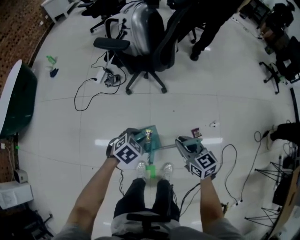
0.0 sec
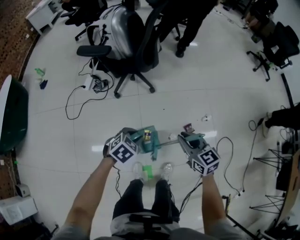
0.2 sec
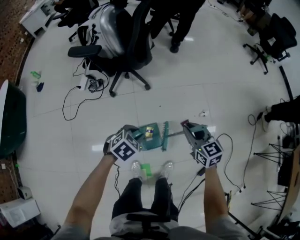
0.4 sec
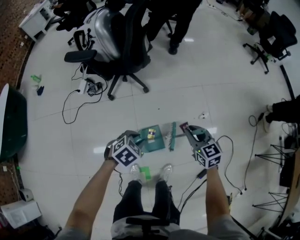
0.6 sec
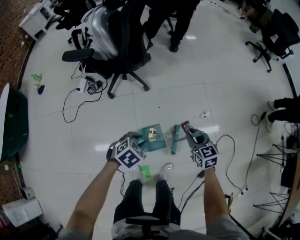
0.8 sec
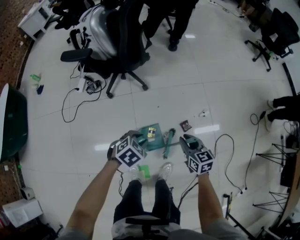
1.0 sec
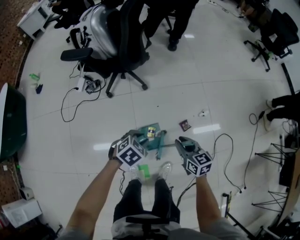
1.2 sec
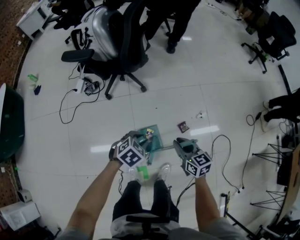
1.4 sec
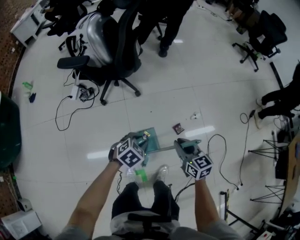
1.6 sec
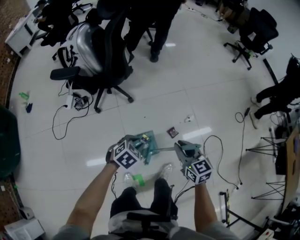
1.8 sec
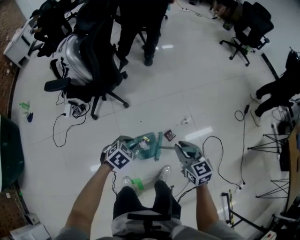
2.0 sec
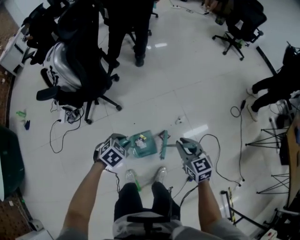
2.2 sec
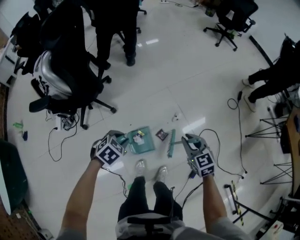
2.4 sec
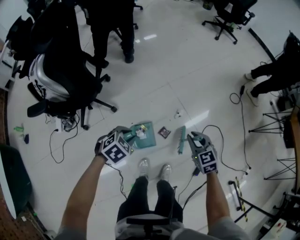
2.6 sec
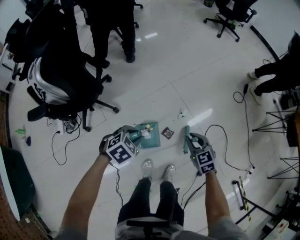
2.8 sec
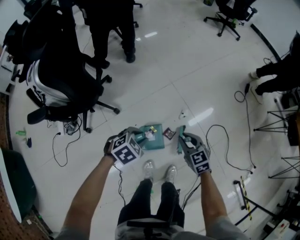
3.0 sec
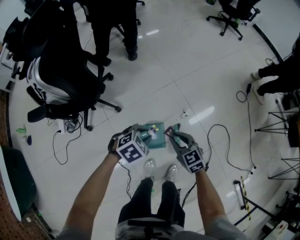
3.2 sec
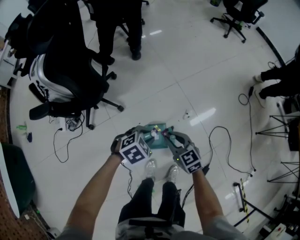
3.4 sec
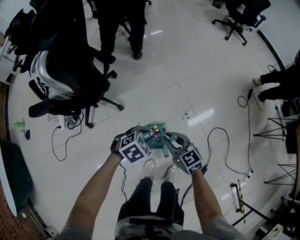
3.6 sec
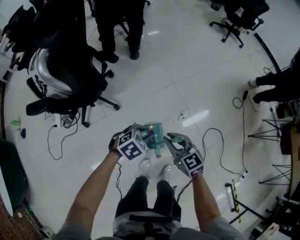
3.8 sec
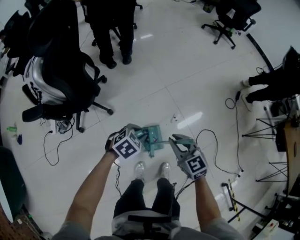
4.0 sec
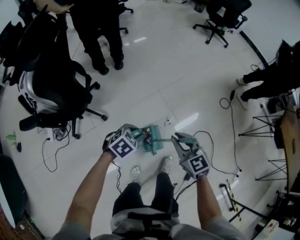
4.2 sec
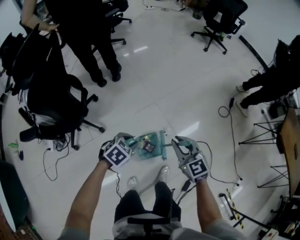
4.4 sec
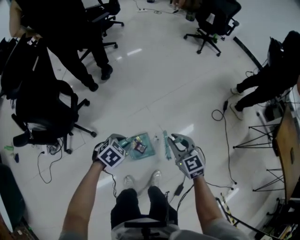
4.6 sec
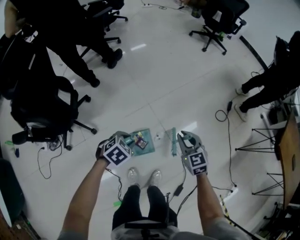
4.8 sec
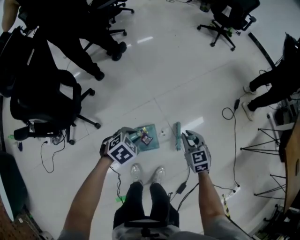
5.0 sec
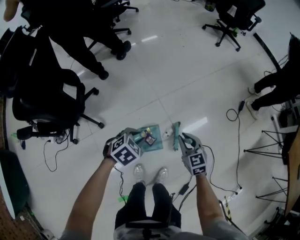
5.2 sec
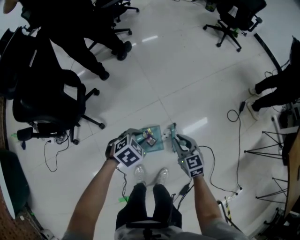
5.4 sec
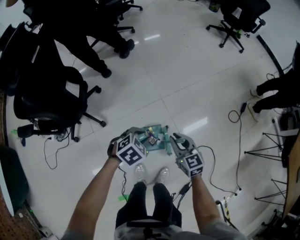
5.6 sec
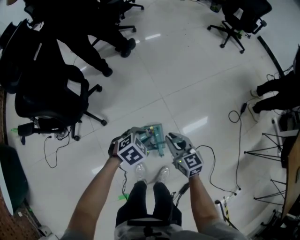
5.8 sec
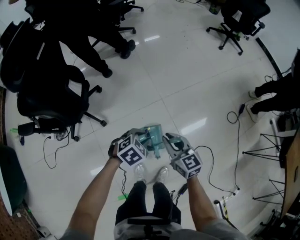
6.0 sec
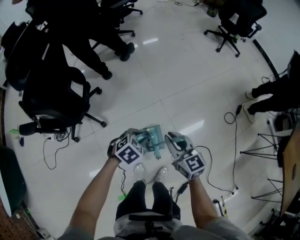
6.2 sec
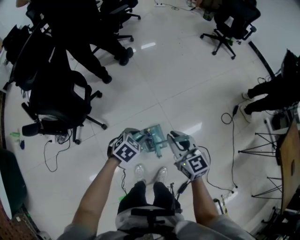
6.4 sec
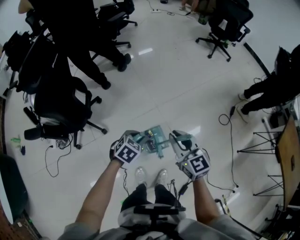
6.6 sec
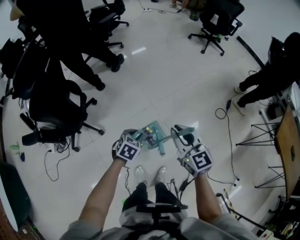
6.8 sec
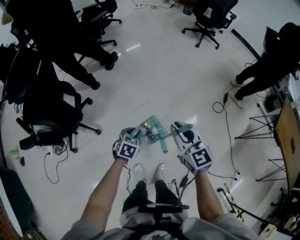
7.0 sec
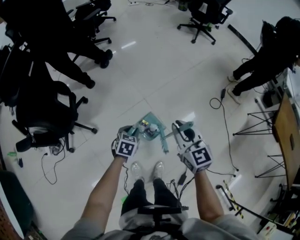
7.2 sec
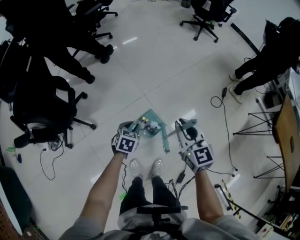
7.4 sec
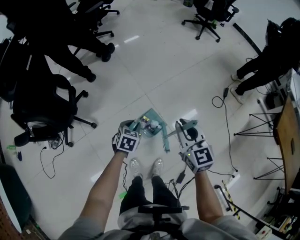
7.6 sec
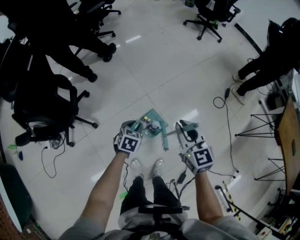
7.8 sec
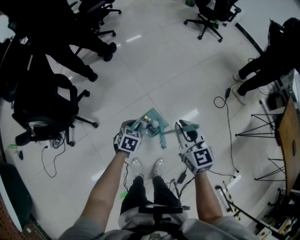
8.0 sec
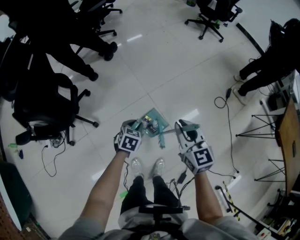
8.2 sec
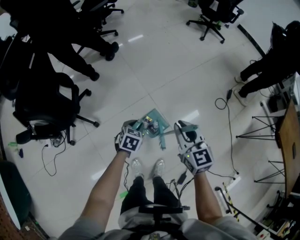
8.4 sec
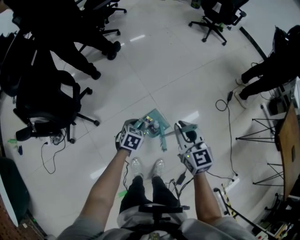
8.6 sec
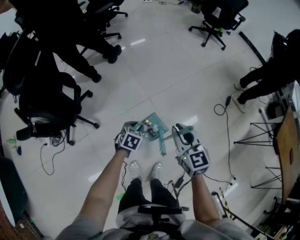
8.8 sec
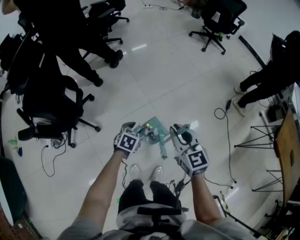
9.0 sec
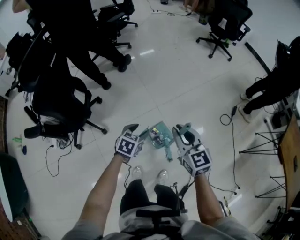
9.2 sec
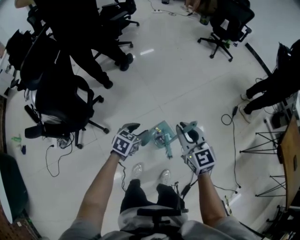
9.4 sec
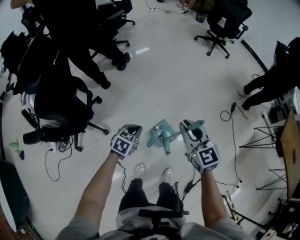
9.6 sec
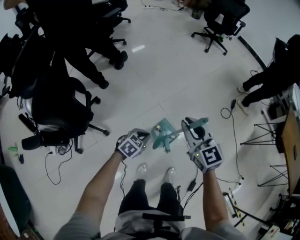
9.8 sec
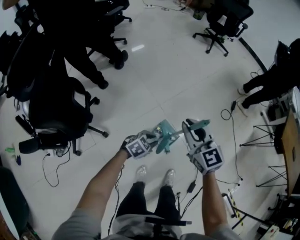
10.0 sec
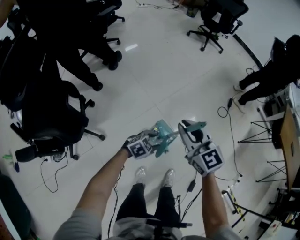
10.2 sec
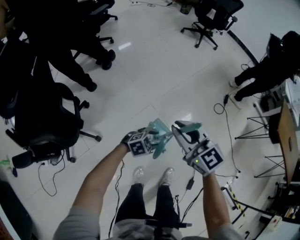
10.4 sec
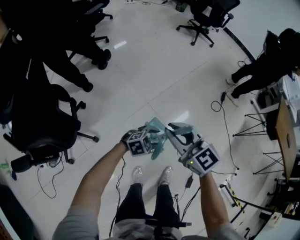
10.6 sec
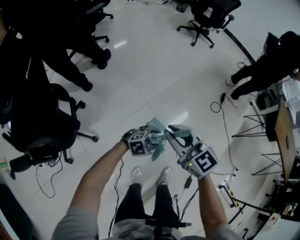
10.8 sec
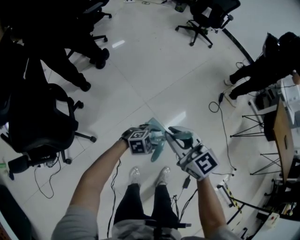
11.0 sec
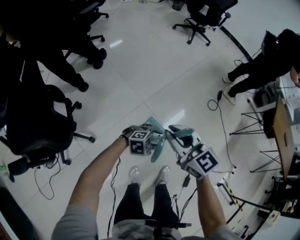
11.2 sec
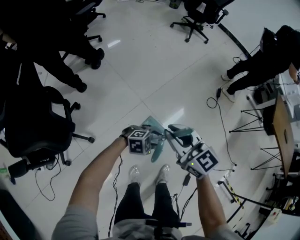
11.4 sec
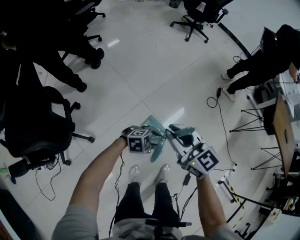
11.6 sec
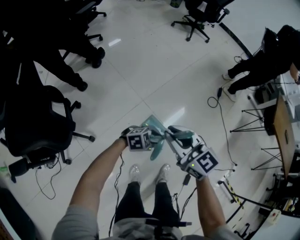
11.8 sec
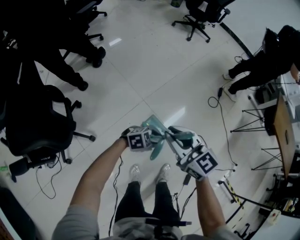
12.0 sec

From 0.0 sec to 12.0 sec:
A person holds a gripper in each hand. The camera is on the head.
From 0.0 sec to 1.6 sec: Both grippers travel together to the right, approximately 15 cm. The right gripper turns by some 20 degrees.
From 1.6 sec to 3.0 sec: The left gripper travels forward and to the right by some 25 cm, and changes its angle by some 30 degrees. Meanwhile the right gripper is displaced forward, to the right and downward by approximately 25 cm.
From 3.0 sec to 4.4 sec: The right gripper travels upward and forward by some 15 cm, and moves roughly 10 cm to the left and comes back, while the left gripper shifts about 10 cm forward and to the right.
From 4.4 sec to 6.0 sec: The left gripper heads forward, covering approximately 10 cm; the right gripper travels forward and downward by some 10 cm, and goes to the right and returns, approximately 10 cm each way.
From 6.0 sec to 7.6 sec: The right gripper moves to the right and upward, approximately 15 cm, and changes its angle by roughly 20 degrees. Meanwhile the left gripper travels upward and back again, some 5 cm each way, and rotates some 20 degrees.
From 7.6 sec to 9.0 sec: The left gripper opens up.
From 9.0 sec to 10.4 sec: The right gripper is displaced to the left by roughly 15 cm; the left gripper shifts approximately 5 cm downward, swivels roughly 60 degrees, and closes, then opens again.
From 10.4 sec to 12.0 sec: The left gripper ends up some 5 cm from where it was.

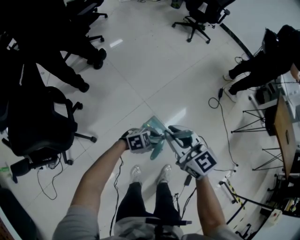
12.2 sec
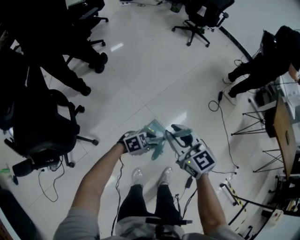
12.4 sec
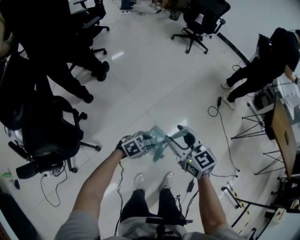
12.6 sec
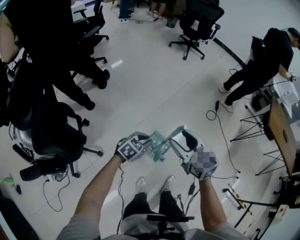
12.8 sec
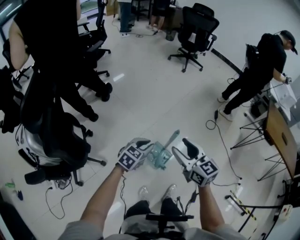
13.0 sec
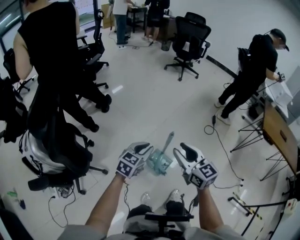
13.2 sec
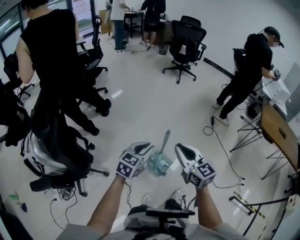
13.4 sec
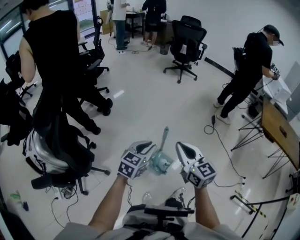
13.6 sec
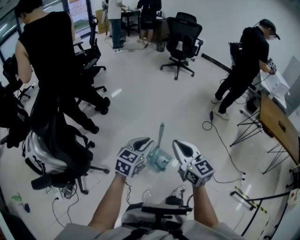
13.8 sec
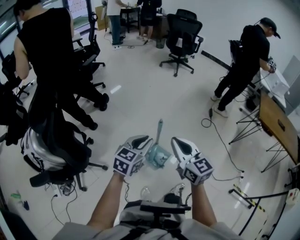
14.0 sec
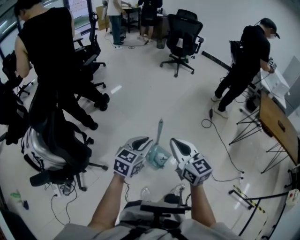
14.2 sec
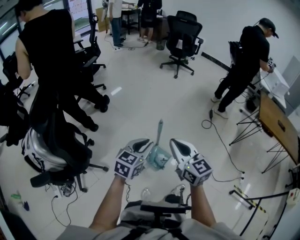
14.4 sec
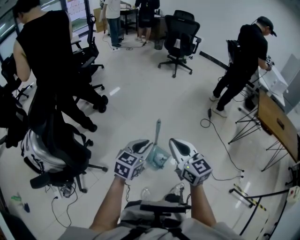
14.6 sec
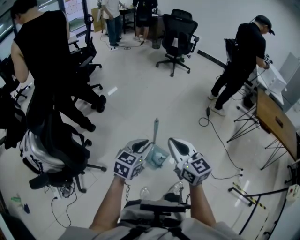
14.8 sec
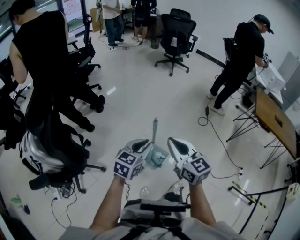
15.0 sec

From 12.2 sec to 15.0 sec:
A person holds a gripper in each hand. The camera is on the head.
From 12.2 sec to 13.6 sec: The left gripper is displaced upward by approximately 25 cm, swivels about 40 degrees, and closes its fingers; the right gripper is displaced upward by about 10 cm, and opens, then closes again.
From 13.6 sec to 15.0 sec: The grippers move only a little.

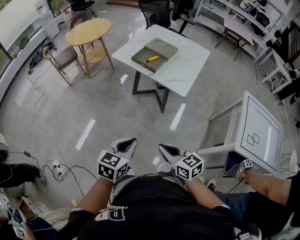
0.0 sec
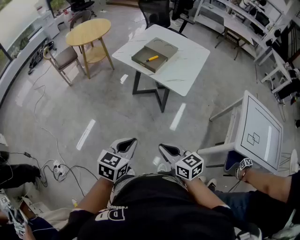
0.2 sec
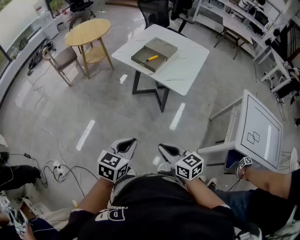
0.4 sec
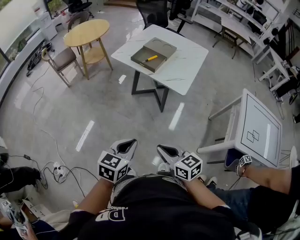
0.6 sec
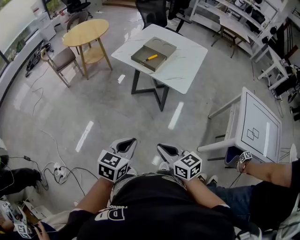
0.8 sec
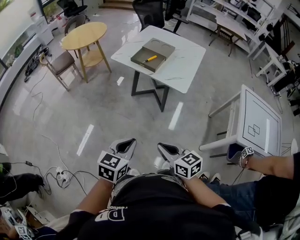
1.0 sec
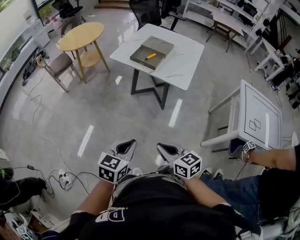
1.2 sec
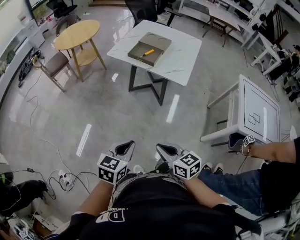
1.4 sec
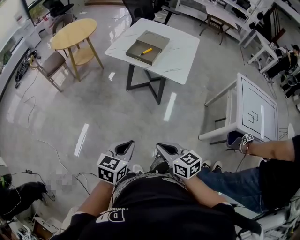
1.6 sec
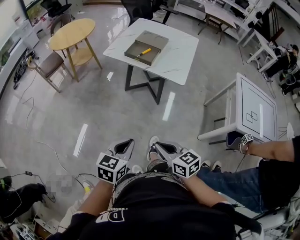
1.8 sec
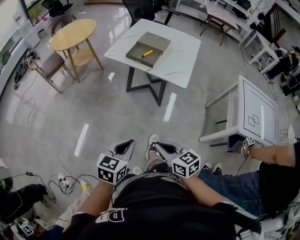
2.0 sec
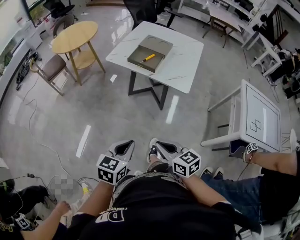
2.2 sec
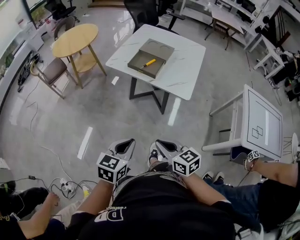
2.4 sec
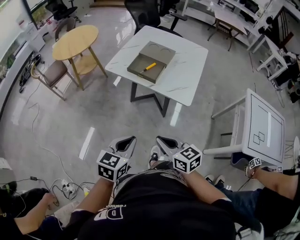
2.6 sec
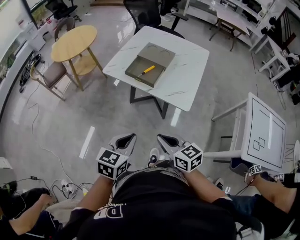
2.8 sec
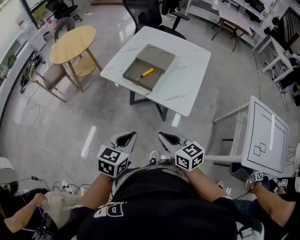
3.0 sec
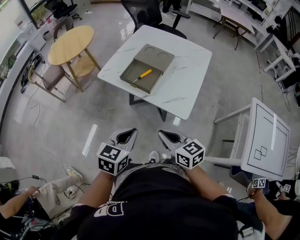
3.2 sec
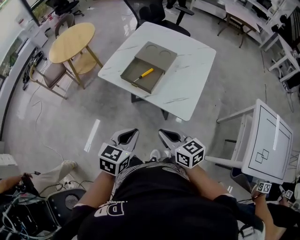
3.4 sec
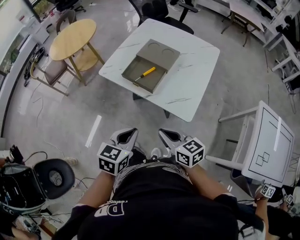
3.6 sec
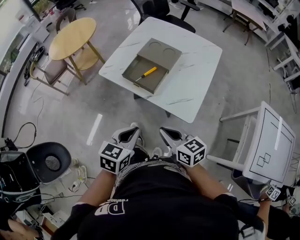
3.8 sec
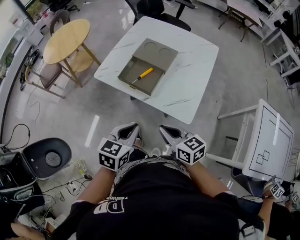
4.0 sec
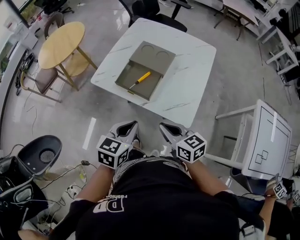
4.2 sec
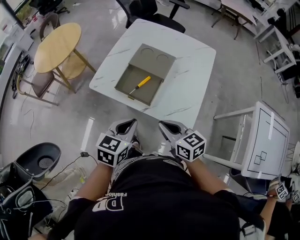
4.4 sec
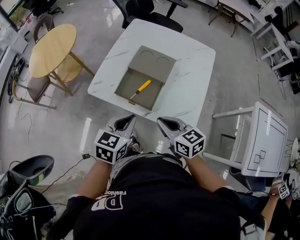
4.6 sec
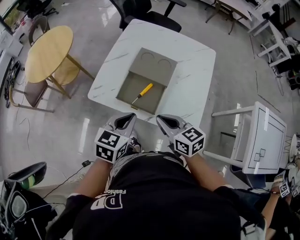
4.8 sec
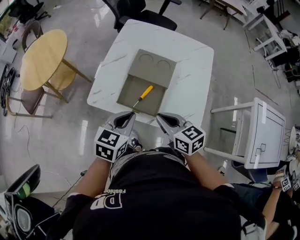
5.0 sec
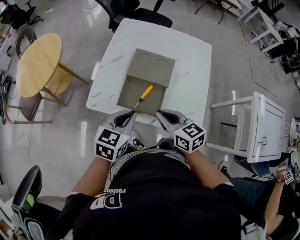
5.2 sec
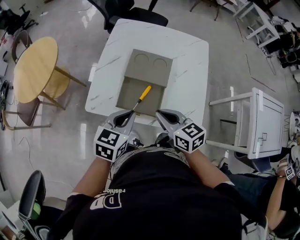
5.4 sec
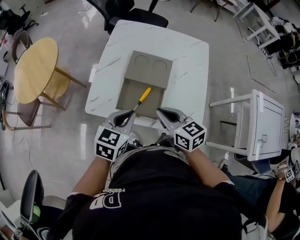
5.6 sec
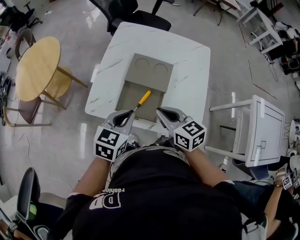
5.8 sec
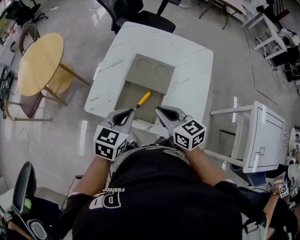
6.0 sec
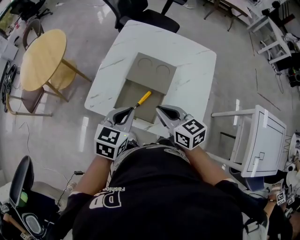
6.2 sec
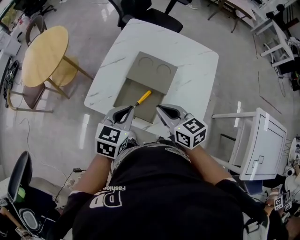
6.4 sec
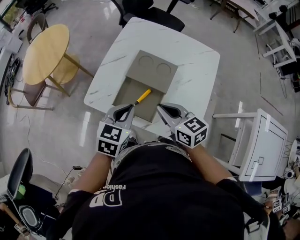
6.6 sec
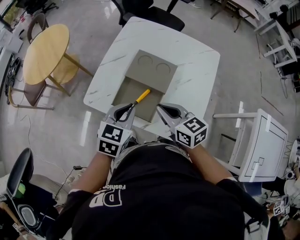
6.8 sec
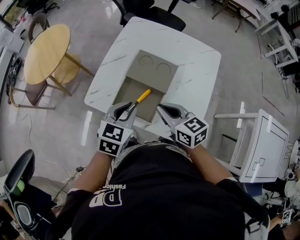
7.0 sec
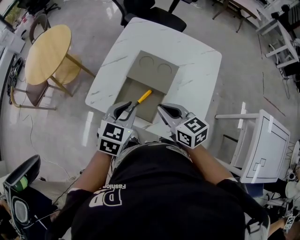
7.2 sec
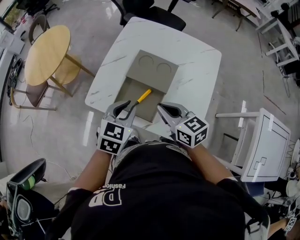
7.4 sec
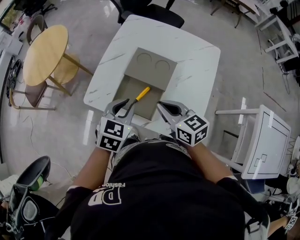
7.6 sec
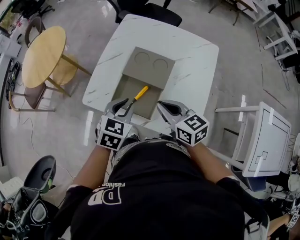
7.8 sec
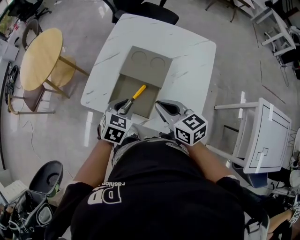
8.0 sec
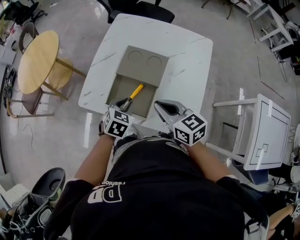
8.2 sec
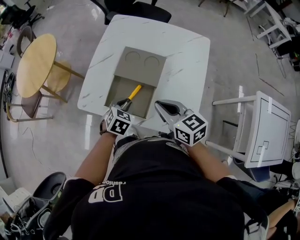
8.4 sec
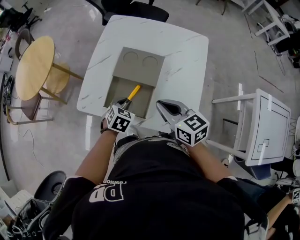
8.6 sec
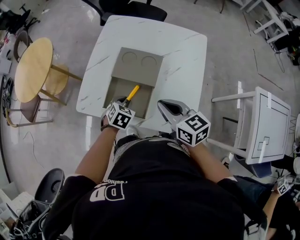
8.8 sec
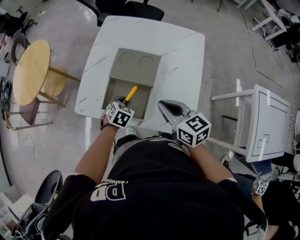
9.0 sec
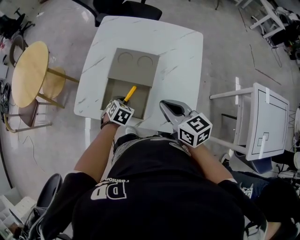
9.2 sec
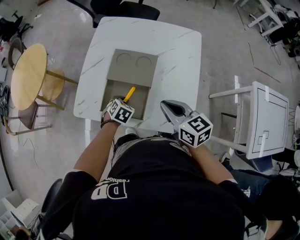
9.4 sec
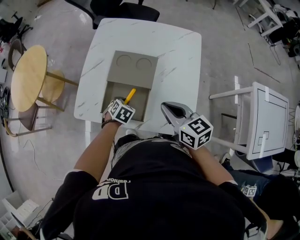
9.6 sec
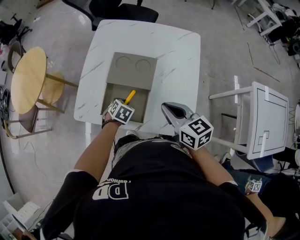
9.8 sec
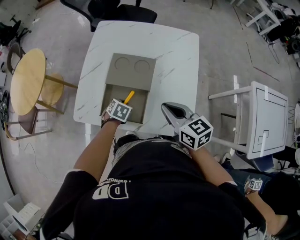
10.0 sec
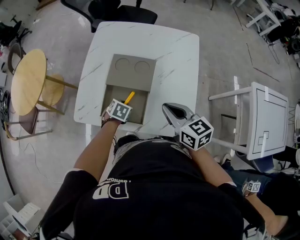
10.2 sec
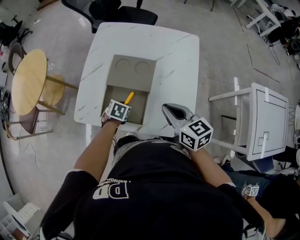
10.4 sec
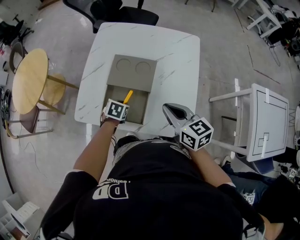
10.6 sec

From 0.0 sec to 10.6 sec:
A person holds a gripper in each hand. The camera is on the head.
From 0.0 sec to 1.6 sec: Both grippers travel together to the left, approximately 10 cm.
From 1.6 sec to 3.0 sec: Both grippers travel together forward, some 30 cm.
From 3.0 sec to 4.6 sec: The two grippers go roughly 25 cm forward.
From 4.6 sec to 6.0 sec: The two grippers go approximately 10 cm forward.
From 6.0 sec to 7.6 sec: The grippers move only a little.
From 7.6 sec to 9.0 sec: The left gripper travels downward by approximately 15 cm, and changes its angle by roughly 20 degrees, while the right gripper heads to the right, covering some 5 cm.
From 9.0 sec to 10.6 sec: The grippers move only a little.
